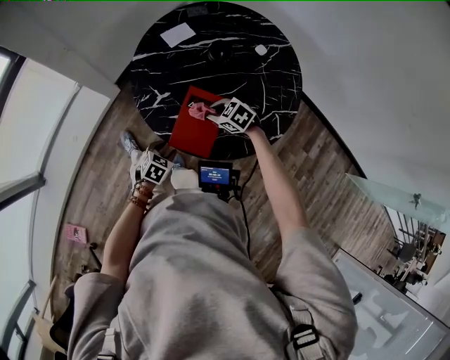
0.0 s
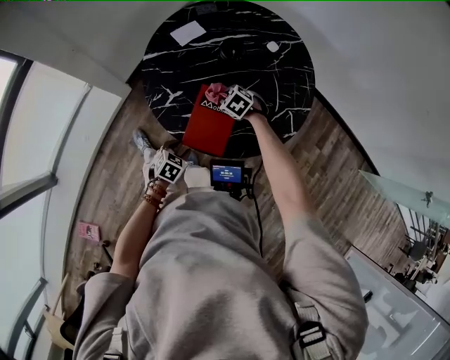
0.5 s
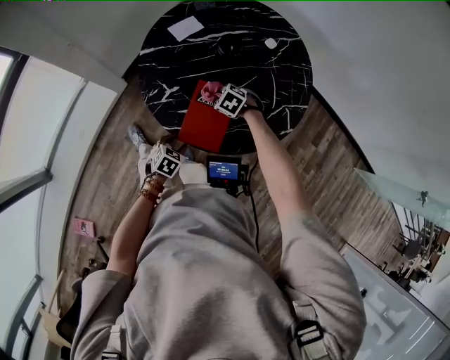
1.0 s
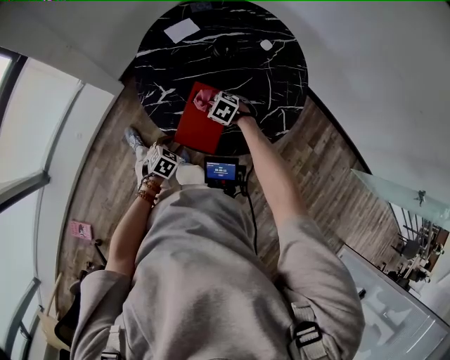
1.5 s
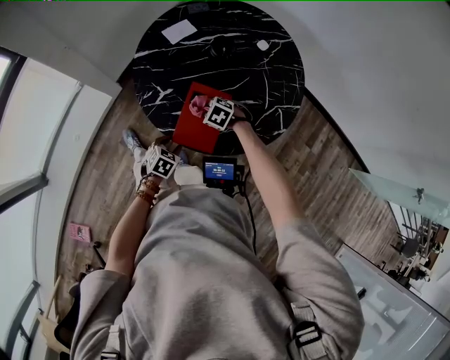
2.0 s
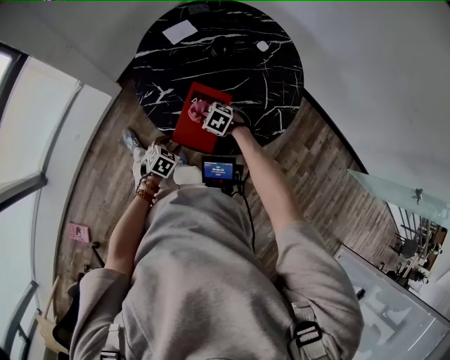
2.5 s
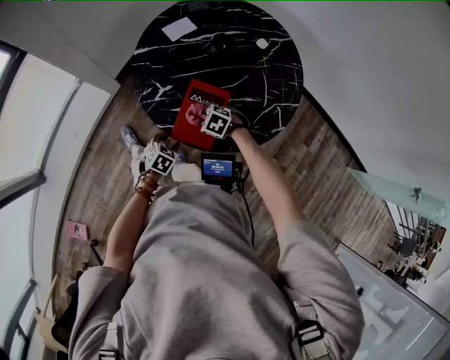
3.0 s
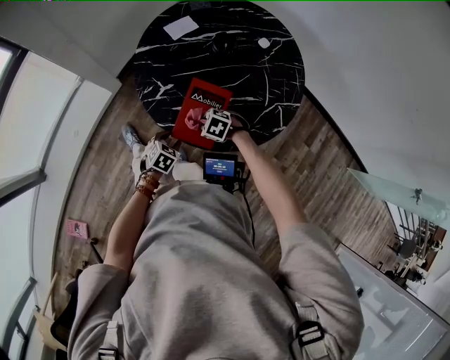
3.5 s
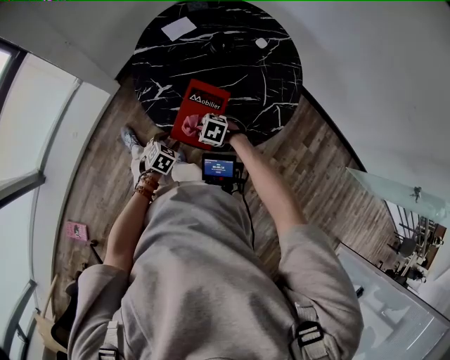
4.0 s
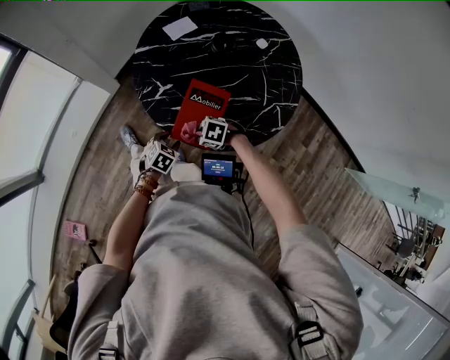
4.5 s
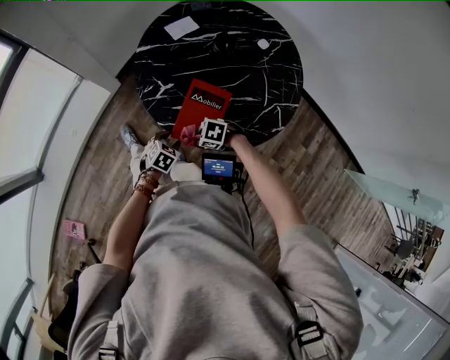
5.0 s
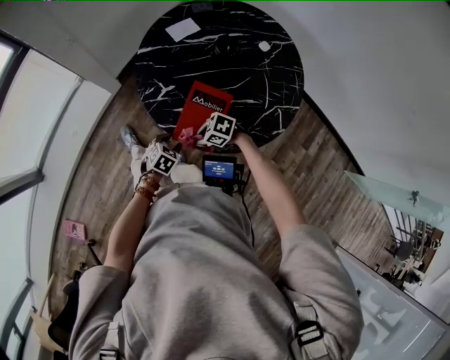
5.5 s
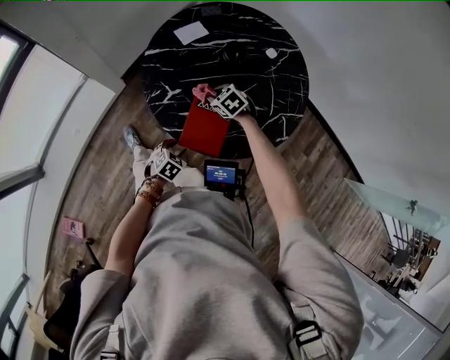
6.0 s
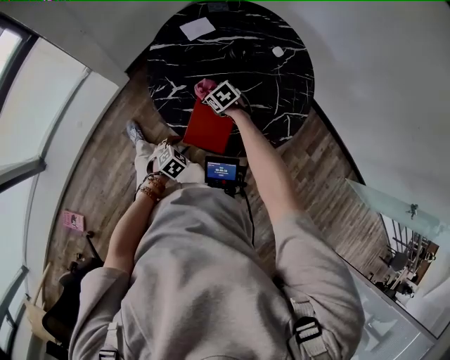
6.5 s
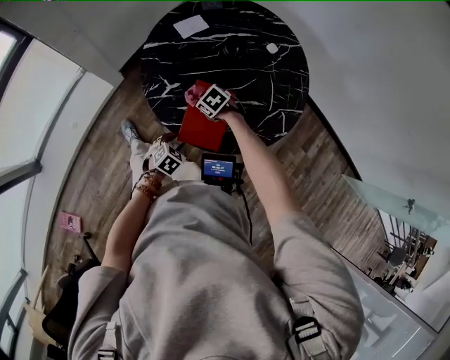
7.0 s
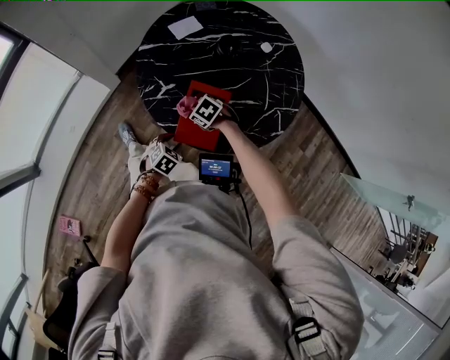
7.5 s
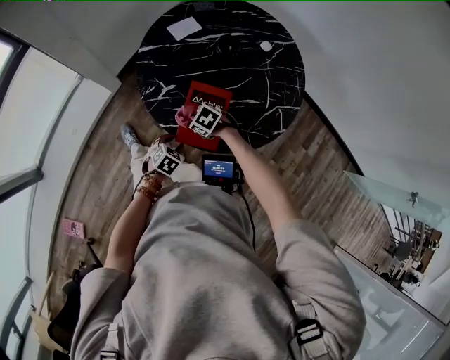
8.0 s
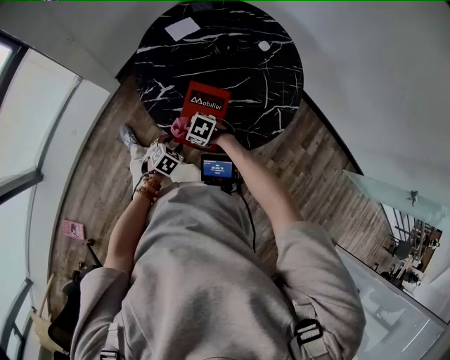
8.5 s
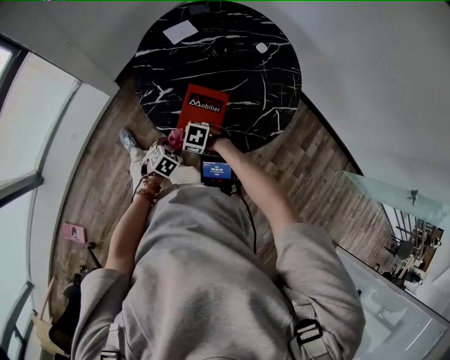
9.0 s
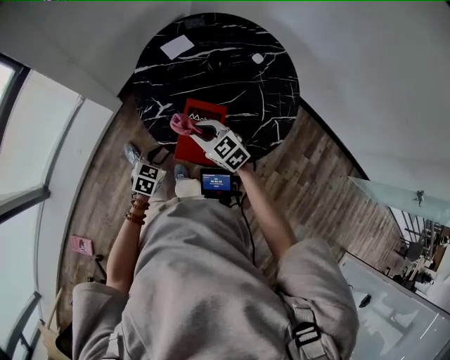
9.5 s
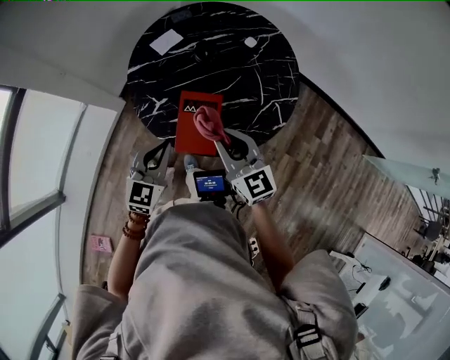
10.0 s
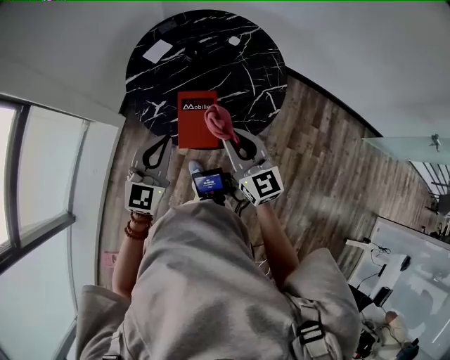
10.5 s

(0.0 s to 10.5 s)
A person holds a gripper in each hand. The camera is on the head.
0.0 s - 2.0 s: The right gripper travels downward by approximately 5 cm.
2.0 s - 4.0 s: The right gripper ends up approximately 10 cm from where it was.
4.0 s - 6.5 s: The right gripper ends up about 15 cm from where it was, and turns by about 30 degrees.
6.5 s - 8.5 s: The right gripper ends up roughly 15 cm from where it was, and changes its angle by approximately 20 degrees.
8.5 s - 10.5 s: The two grippers go approximately 35 cm upward. The right gripper tips its fingers upward by approximately 60 degrees. Meanwhile the left gripper points its fingers some 50 degrees further upward, and closes up.

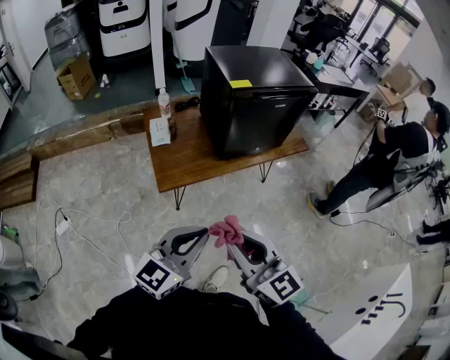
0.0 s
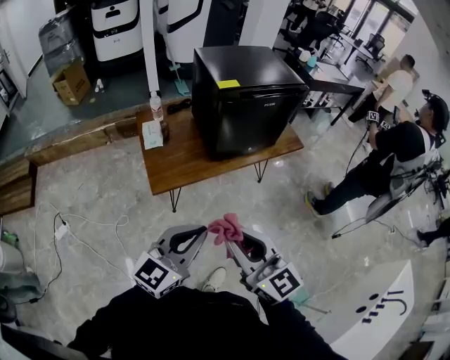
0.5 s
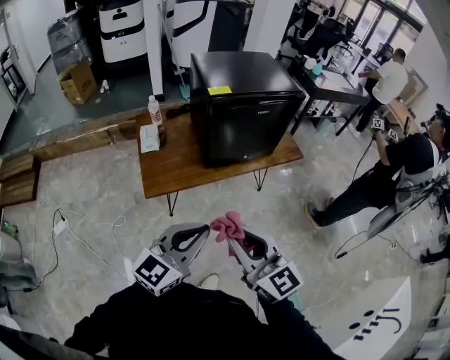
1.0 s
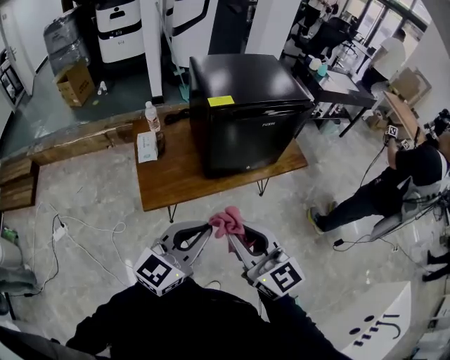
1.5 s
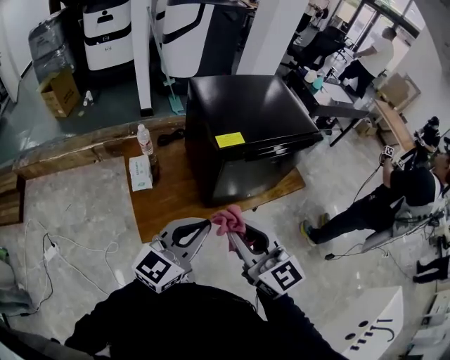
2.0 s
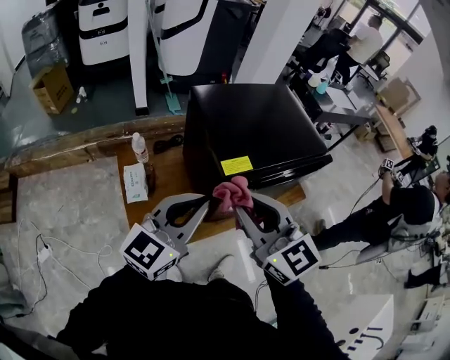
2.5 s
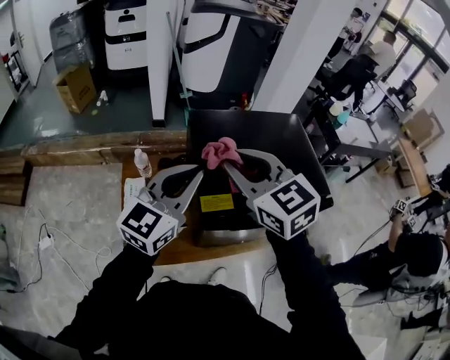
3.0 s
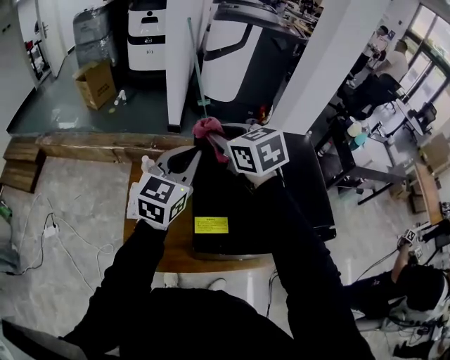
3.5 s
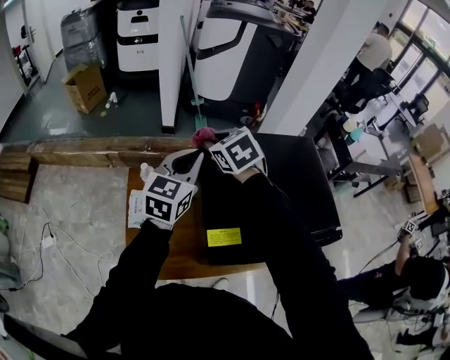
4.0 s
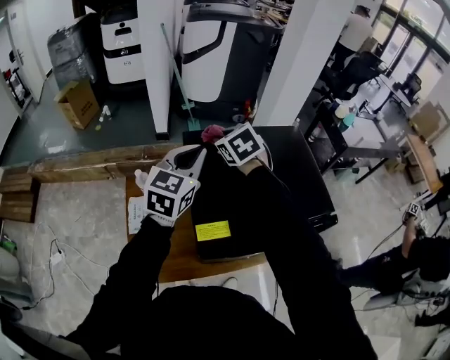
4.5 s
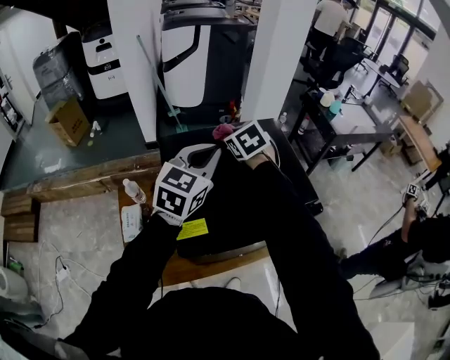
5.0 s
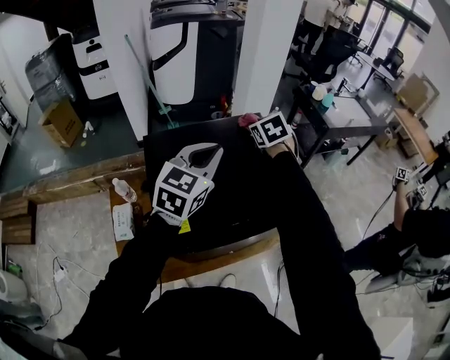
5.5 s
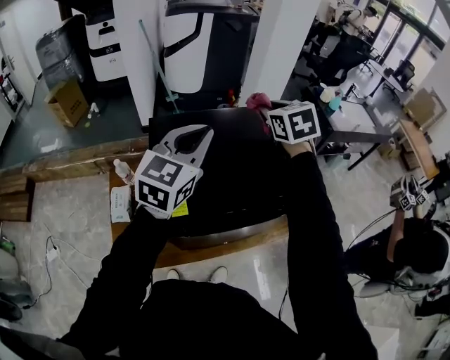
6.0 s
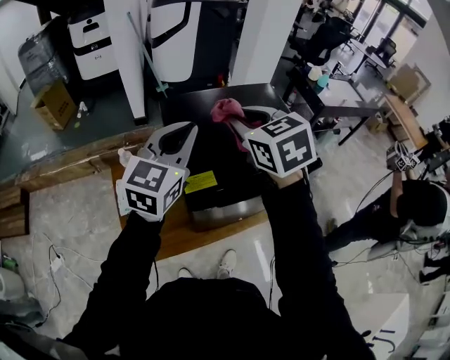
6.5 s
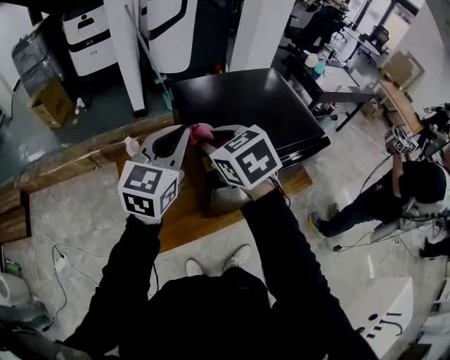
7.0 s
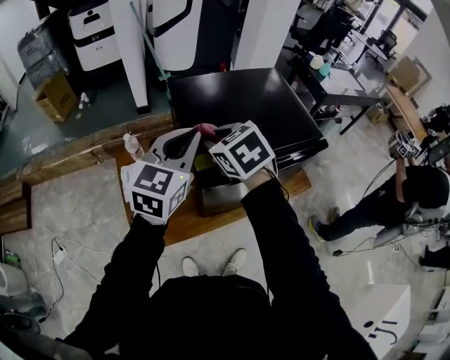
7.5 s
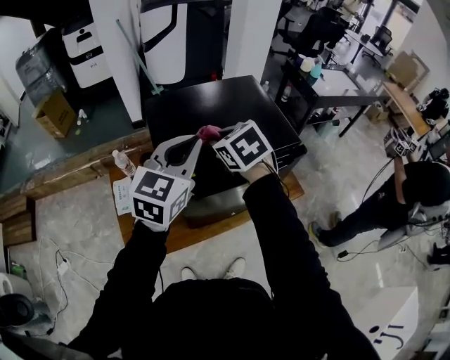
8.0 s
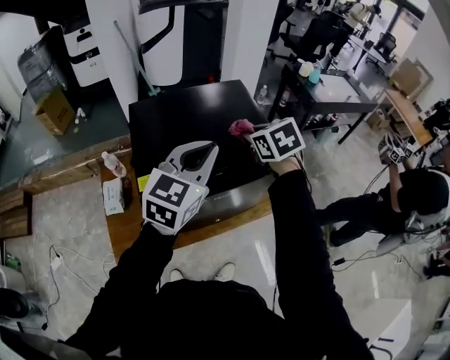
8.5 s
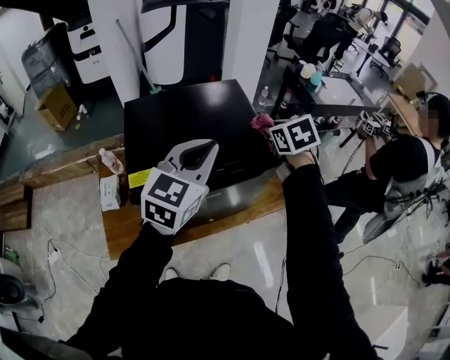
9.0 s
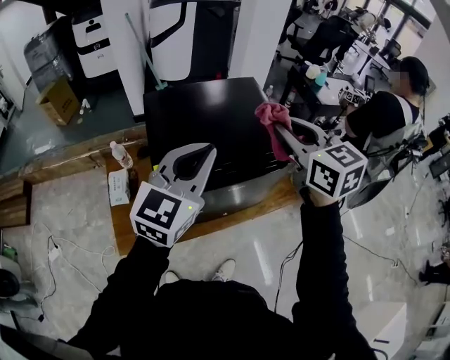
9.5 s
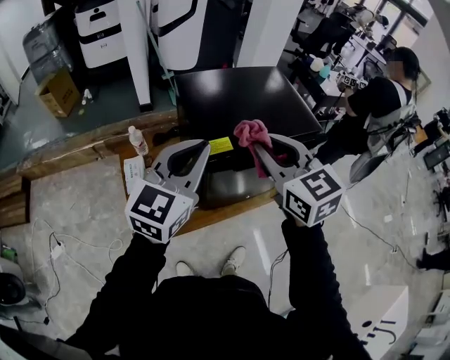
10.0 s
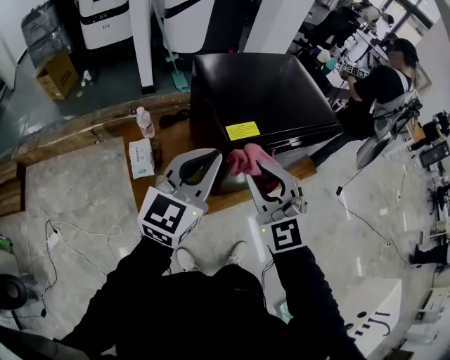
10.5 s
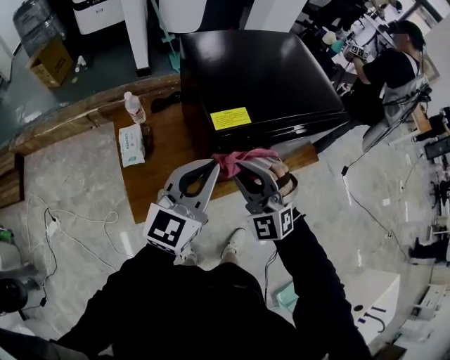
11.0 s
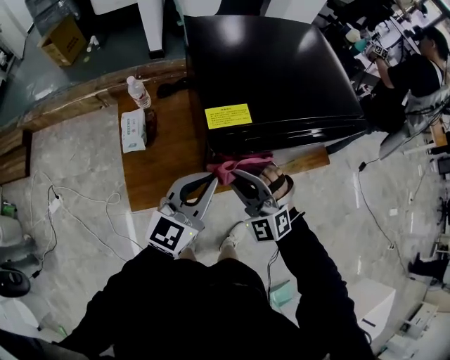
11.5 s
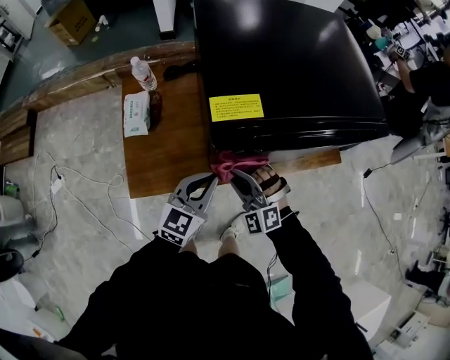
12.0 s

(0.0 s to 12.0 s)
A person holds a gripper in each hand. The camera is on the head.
0.0 s - 2.0 s: The grippers both shift forward by approximately 30 cm.
2.0 s - 4.0 s: The two grippers travel together, some 50 cm. The left gripper changes its angle by roughly 30 degrees. The right gripper angles its fingers downward, by about 40 degrees.
4.0 s - 6.0 s: The left gripper heads to the right and upward, covering roughly 20 cm. Meanwhile the right gripper is displaced to the right by about 35 cm, and turns by some 30 degrees.
6.0 s - 8.0 s: The right gripper is displaced backward, to the left and downward by approximately 25 cm. Meanwhile the left gripper moves backward, approximately 10 cm, and goes to the left and returns, some 15 cm each way.
8.0 s - 10.0 s: The left gripper heads backward and to the left, covering about 15 cm, while the right gripper moves backward and upward, roughly 15 cm, travels to the right and back again, approximately 25 cm each way, and turns by about 30 degrees.
10.0 s - 12.0 s: Both grippers travel together downward, some 35 cm. The right gripper rotates around the line of its fingers by approximately 50 degrees, counterclockwise from behind.

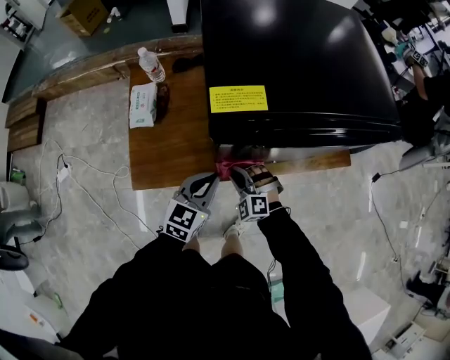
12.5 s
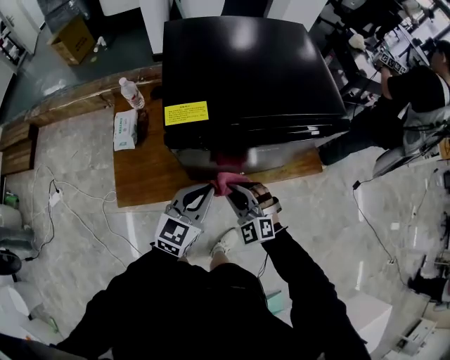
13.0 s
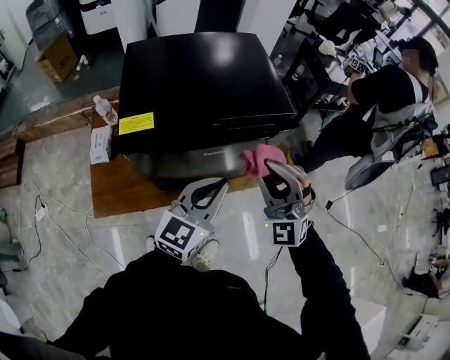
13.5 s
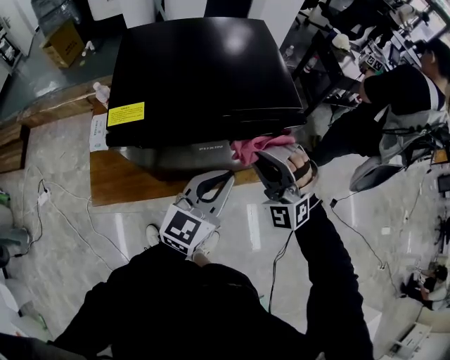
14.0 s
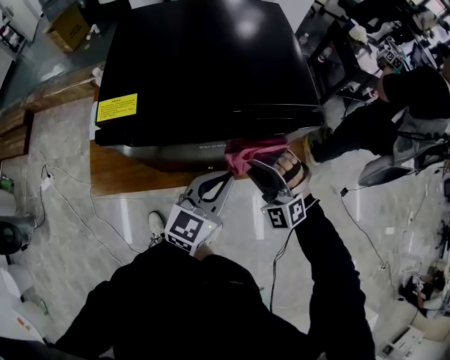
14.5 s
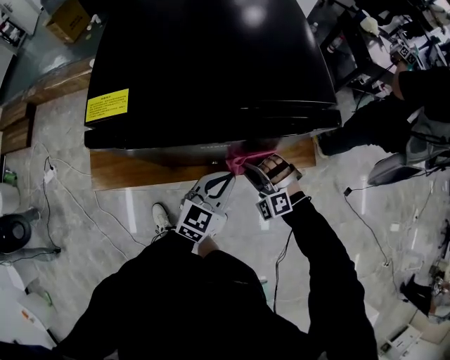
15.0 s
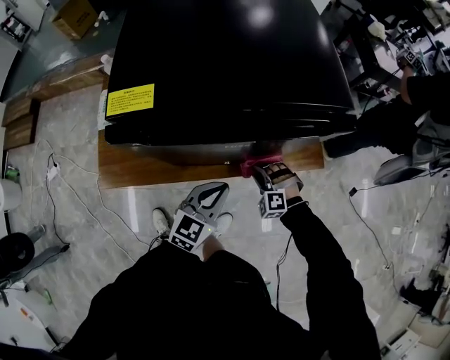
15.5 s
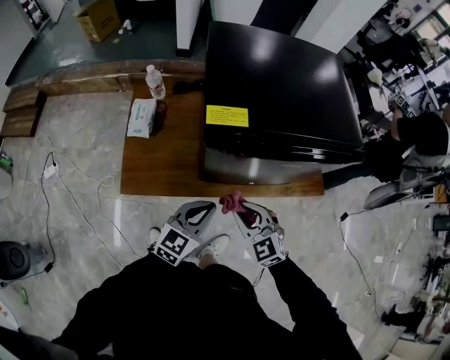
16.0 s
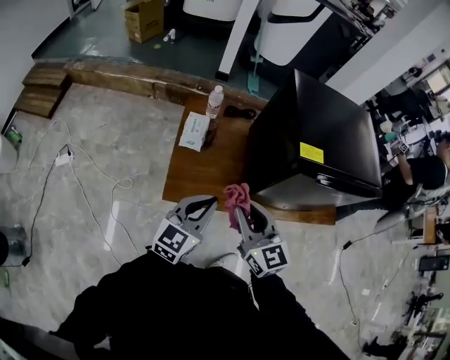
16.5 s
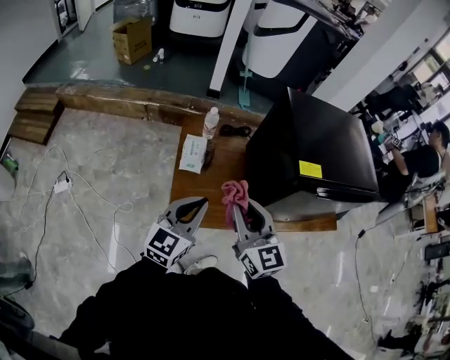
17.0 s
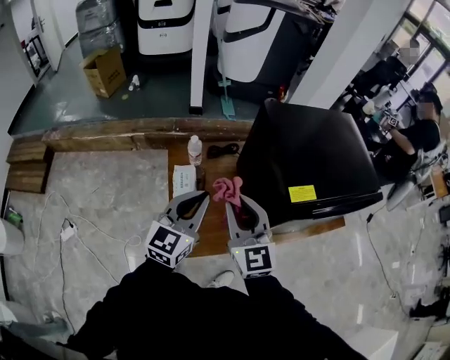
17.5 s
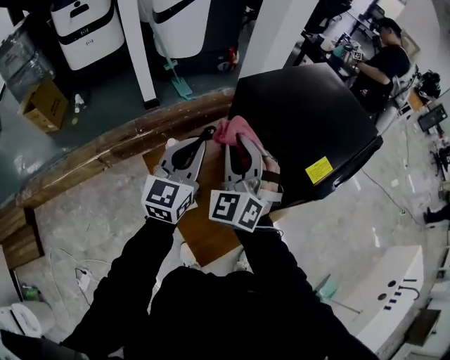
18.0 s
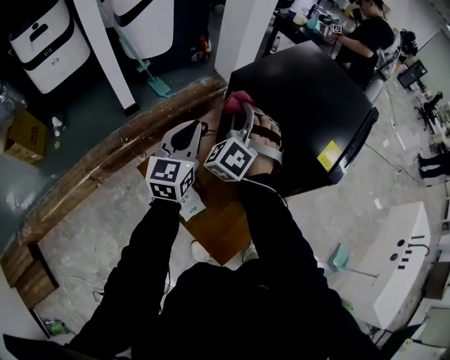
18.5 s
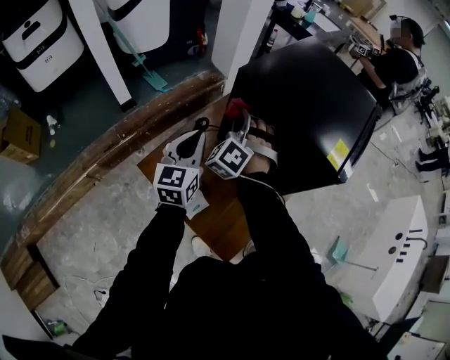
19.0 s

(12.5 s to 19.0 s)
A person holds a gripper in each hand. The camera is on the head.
12.5 s - 14.5 s: The two grippers go roughly 35 cm to the right and upward. The right gripper rotates some 30 degrees.
14.5 s - 17.0 s: Both grippers are carried to the left, some 50 cm. The right gripper rolls clockwise, seen from behind, by roughly 70 degrees.
17.0 s - 19.0 s: The left gripper shifts by some 40 cm, and swivels about 30 degrees, while the right gripper changes place by roughly 40 cm, and changes its angle by some 90 degrees.
